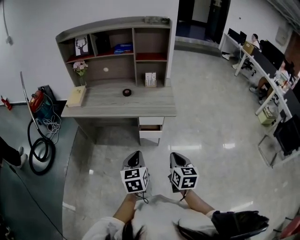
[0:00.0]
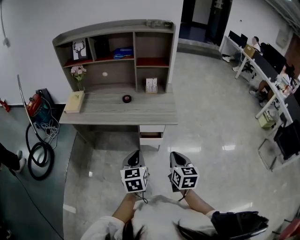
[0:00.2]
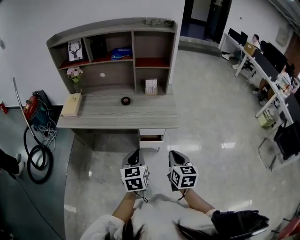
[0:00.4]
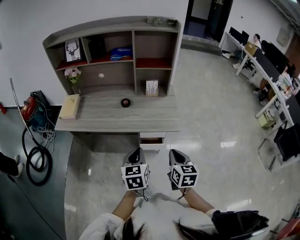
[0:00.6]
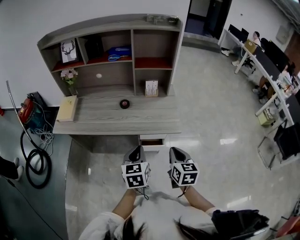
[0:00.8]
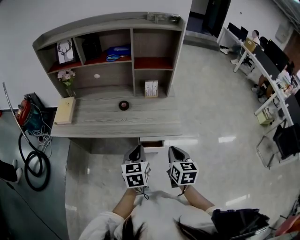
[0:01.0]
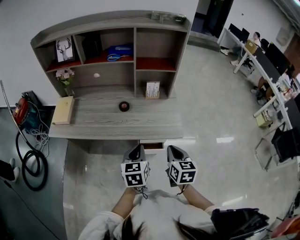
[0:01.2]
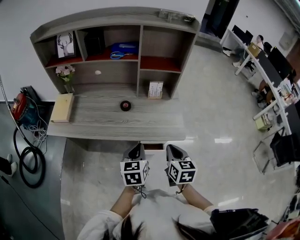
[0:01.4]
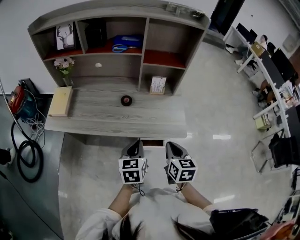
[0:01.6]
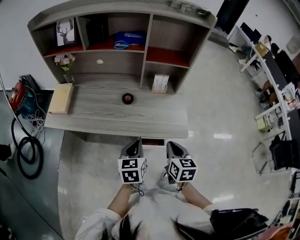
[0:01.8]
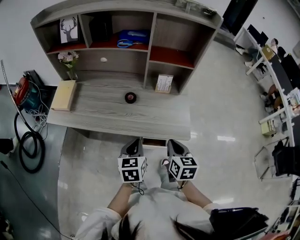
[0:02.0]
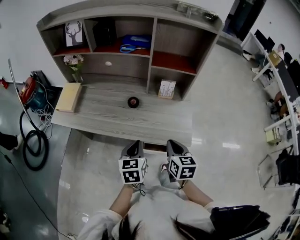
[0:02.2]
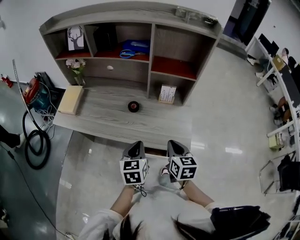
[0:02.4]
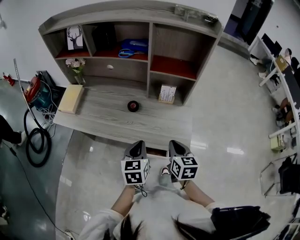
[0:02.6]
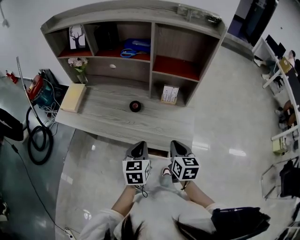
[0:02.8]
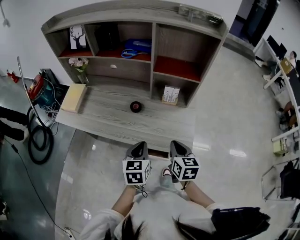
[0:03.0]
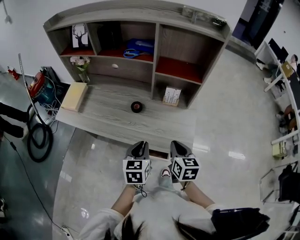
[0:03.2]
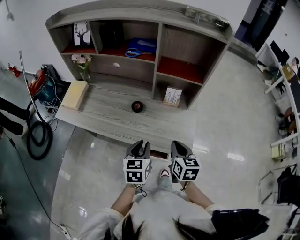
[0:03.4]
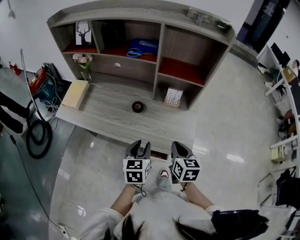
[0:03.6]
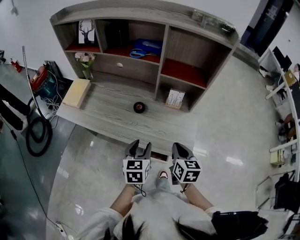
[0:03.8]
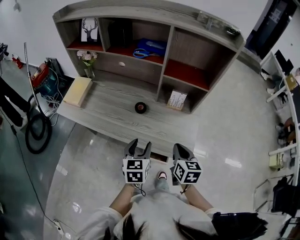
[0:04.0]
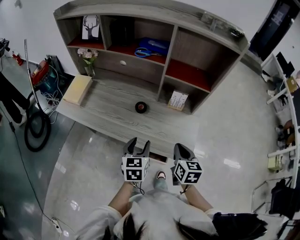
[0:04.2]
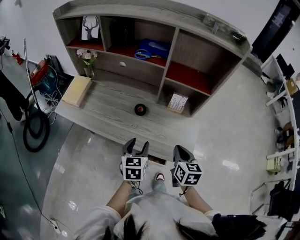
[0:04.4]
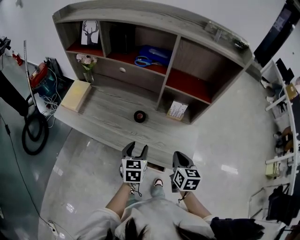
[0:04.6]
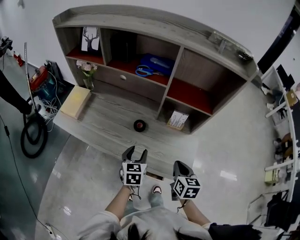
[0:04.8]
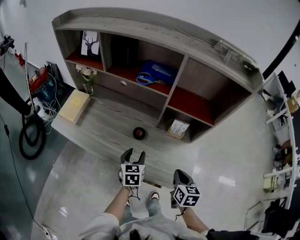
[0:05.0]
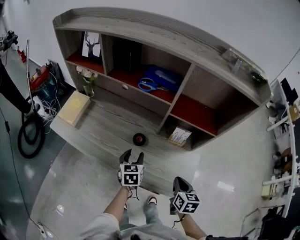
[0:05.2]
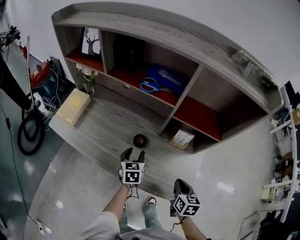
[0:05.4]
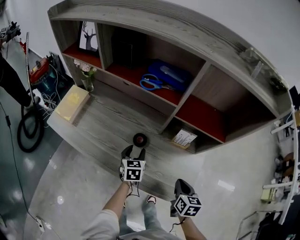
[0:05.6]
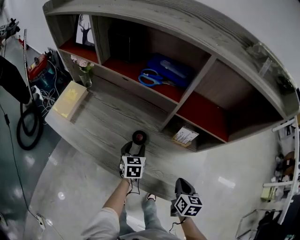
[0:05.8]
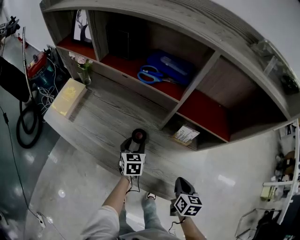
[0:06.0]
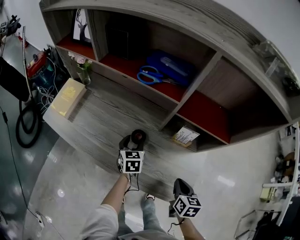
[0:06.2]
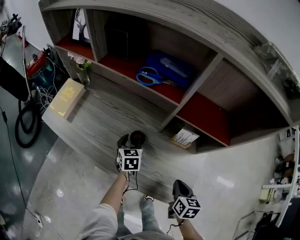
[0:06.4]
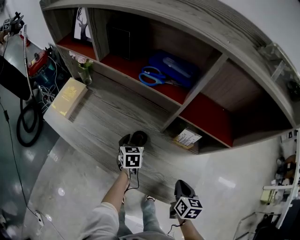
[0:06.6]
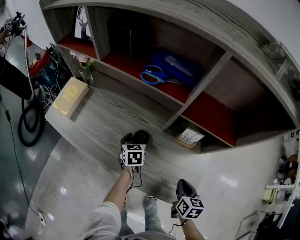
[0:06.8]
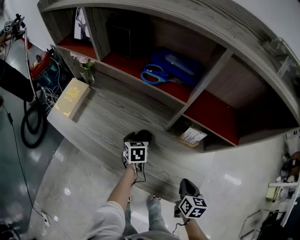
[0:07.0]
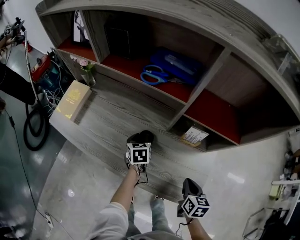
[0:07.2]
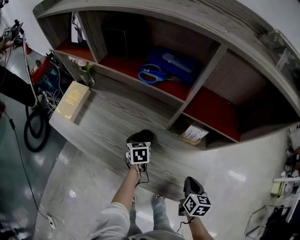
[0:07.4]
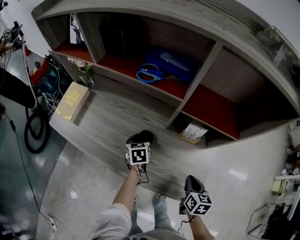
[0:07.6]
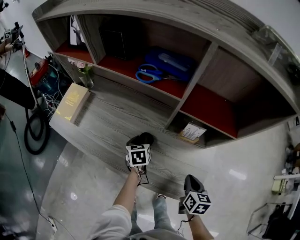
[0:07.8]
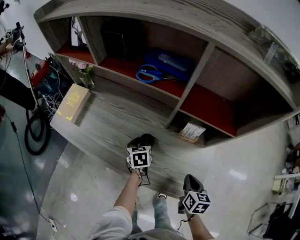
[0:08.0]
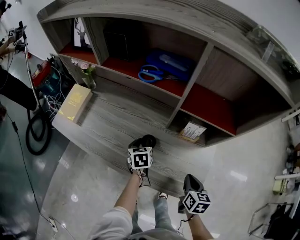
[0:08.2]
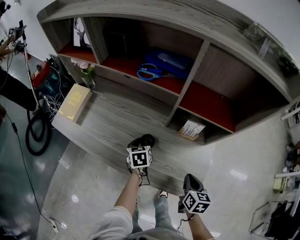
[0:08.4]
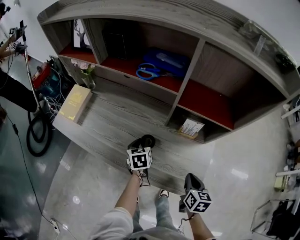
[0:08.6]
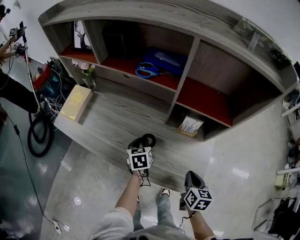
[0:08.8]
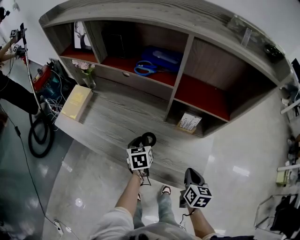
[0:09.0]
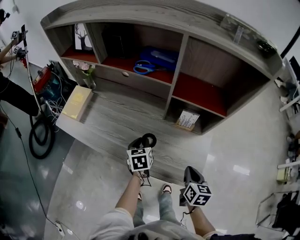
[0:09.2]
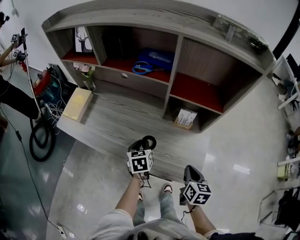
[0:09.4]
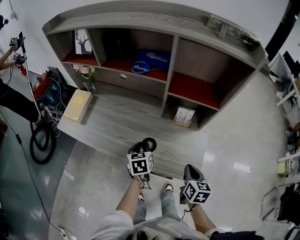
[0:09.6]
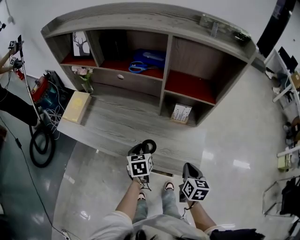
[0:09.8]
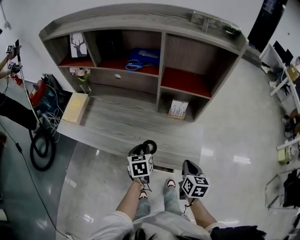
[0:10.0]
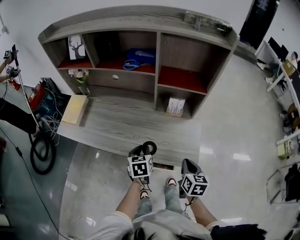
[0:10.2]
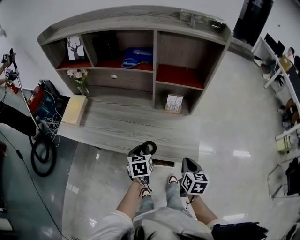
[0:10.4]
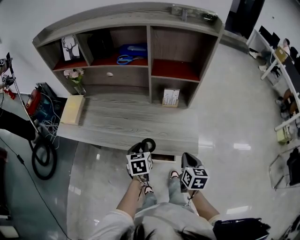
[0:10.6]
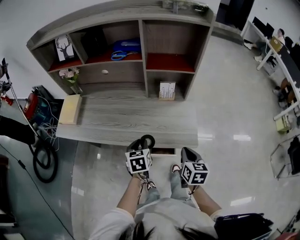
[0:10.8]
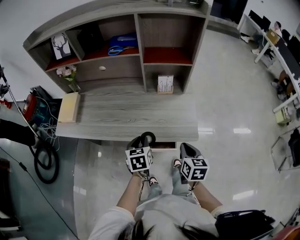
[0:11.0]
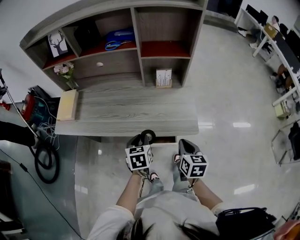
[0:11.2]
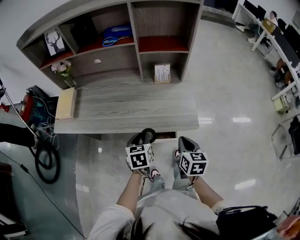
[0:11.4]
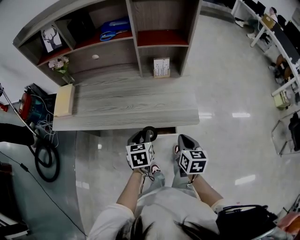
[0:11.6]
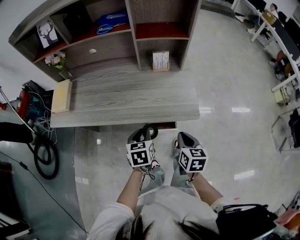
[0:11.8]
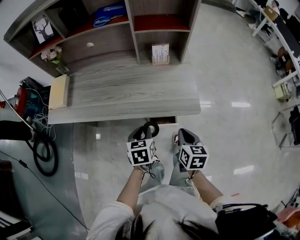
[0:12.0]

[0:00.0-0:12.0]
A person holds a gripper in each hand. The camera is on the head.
0:00.0 to 0:01.6: Both grippers move forward, about 30 cm.
0:01.6 to 0:03.0: The left gripper is displaced forward by roughly 5 cm; the right gripper shifts approximately 10 cm forward.
0:03.0 to 0:04.4: The left gripper moves roughly 5 cm, and opens.
0:04.4 to 0:06.0: The right gripper moves downward and forward, some 10 cm, while the left gripper is displaced forward and downward by roughly 25 cm.
0:06.0 to 0:07.6: There are only small adjustments of the grippers.
0:07.6 to 0:09.0: The left gripper heads backward and upward, covering roughly 10 cm.
0:09.0 to 0:10.4: Both grippers move backward, about 15 cm.
0:10.4 to 0:12.0: Both grippers travel together backward, some 10 cm.

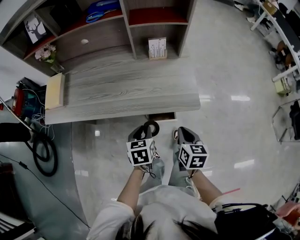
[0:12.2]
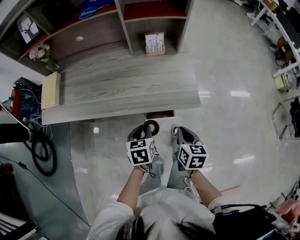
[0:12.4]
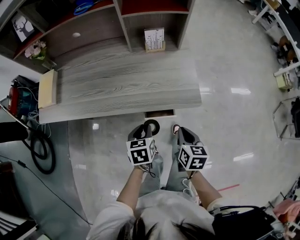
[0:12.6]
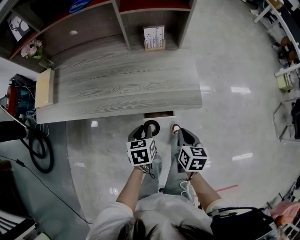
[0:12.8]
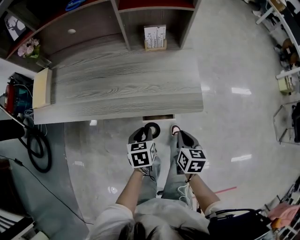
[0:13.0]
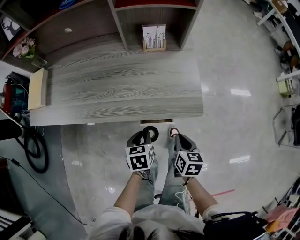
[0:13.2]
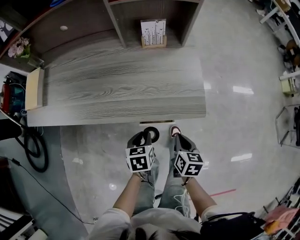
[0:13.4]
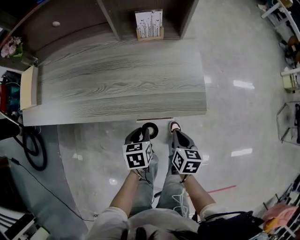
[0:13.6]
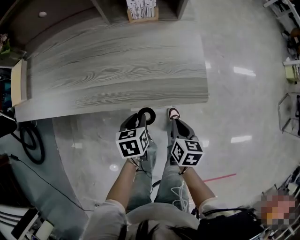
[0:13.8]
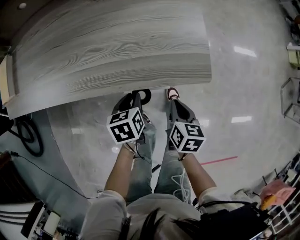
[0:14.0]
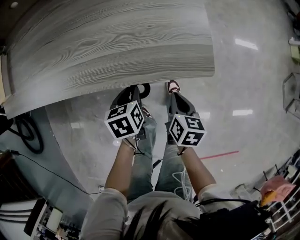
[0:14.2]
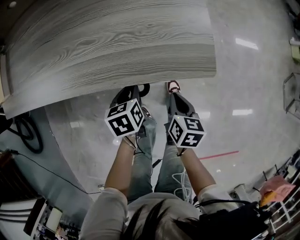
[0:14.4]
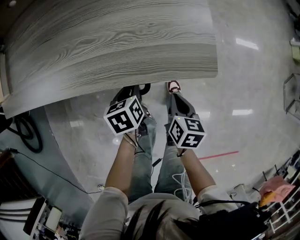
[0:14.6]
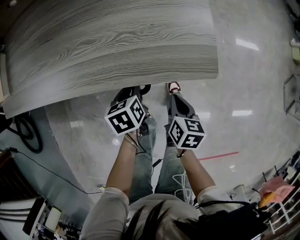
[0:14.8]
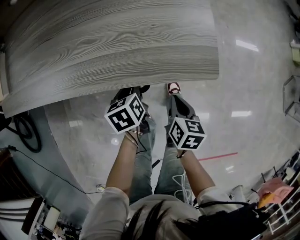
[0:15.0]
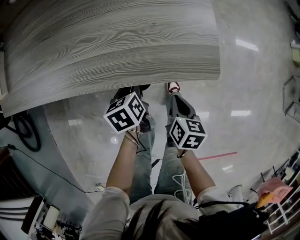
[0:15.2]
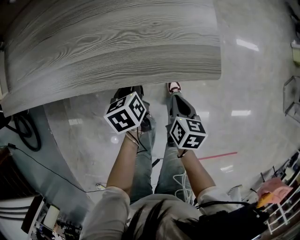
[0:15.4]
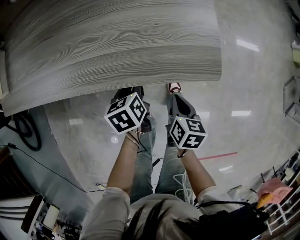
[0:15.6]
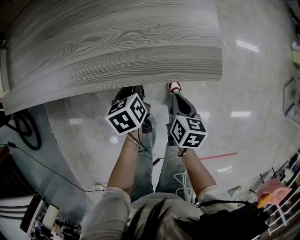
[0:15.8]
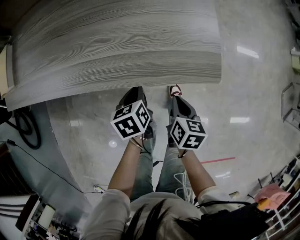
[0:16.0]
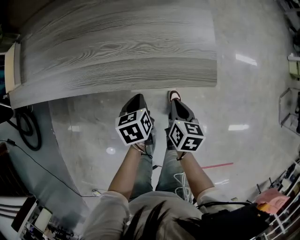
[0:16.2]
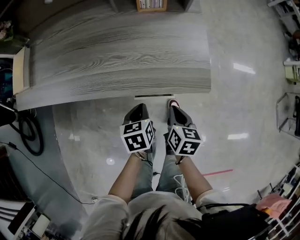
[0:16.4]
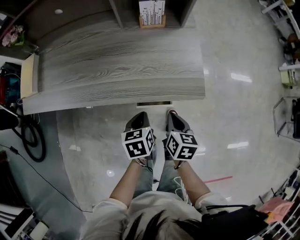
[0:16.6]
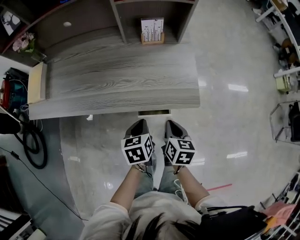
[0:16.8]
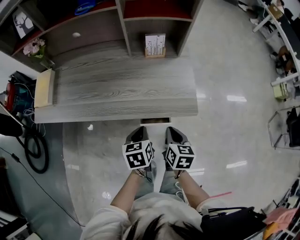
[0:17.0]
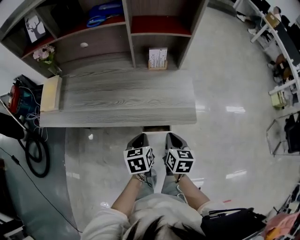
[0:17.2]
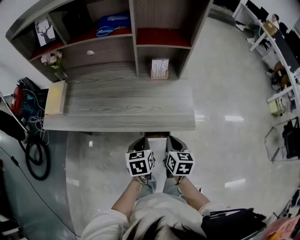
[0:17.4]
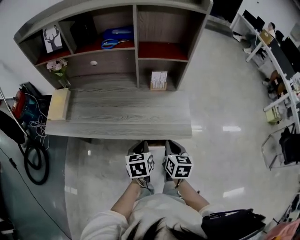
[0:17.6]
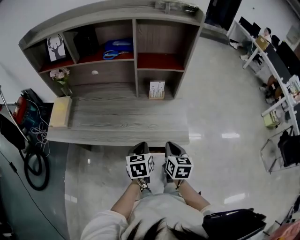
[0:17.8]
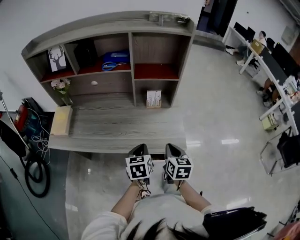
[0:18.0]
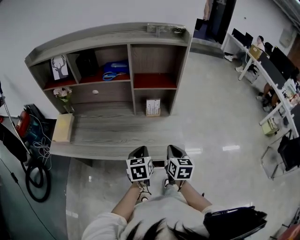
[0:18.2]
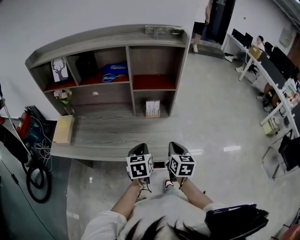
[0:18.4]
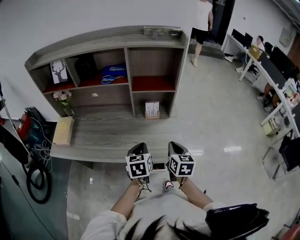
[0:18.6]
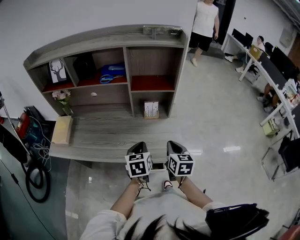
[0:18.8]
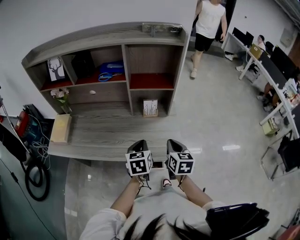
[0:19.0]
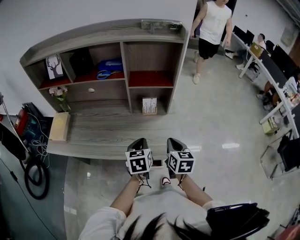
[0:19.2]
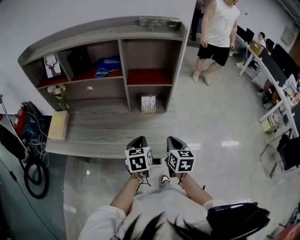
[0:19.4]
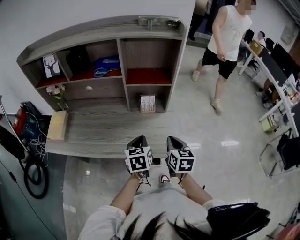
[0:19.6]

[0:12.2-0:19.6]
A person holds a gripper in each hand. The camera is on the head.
0:12.2 to 0:13.6: Both grippers travel together downward, roughly 15 cm.
0:13.6 to 0:15.2: The left gripper goes approximately 10 cm downward and forward. Meanwhile the right gripper shifts some 10 cm downward.
0:15.2 to 0:16.6: Both grippers travel together upward, approximately 15 cm. The left gripper closes.
0:16.6 to 0:18.2: The grippers both shift upward by about 25 cm. The right gripper changes its angle by approximately 20 degrees.
0:18.2 to 0:19.6: The right gripper changes place by some 5 cm. The left gripper changes place by roughly 5 cm.

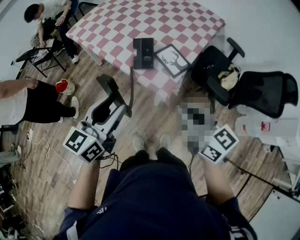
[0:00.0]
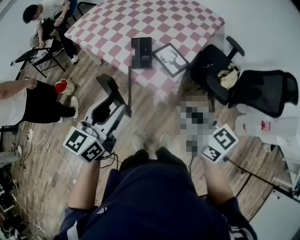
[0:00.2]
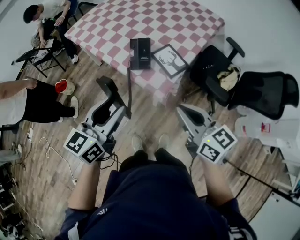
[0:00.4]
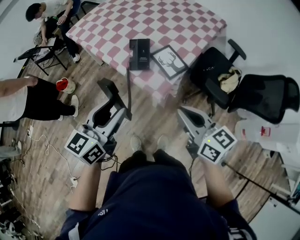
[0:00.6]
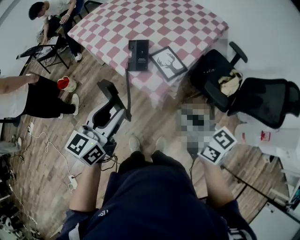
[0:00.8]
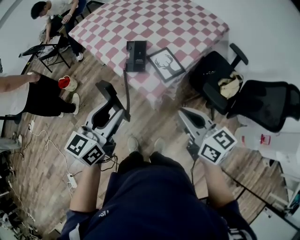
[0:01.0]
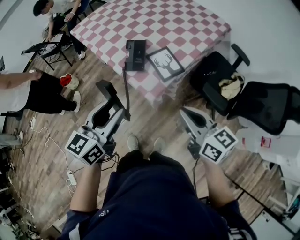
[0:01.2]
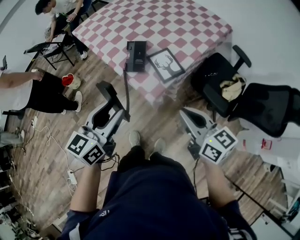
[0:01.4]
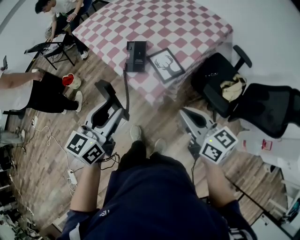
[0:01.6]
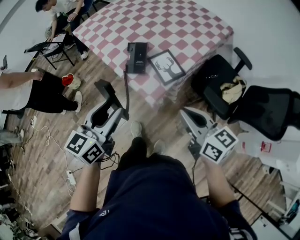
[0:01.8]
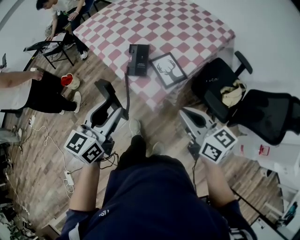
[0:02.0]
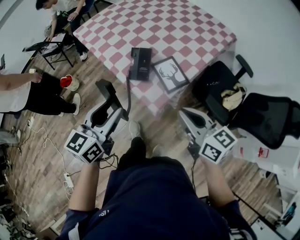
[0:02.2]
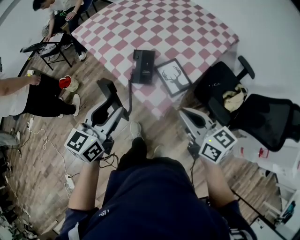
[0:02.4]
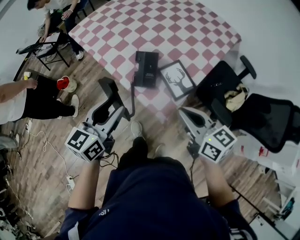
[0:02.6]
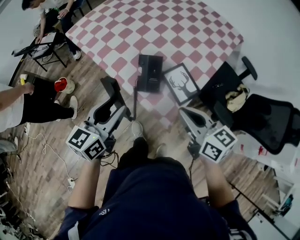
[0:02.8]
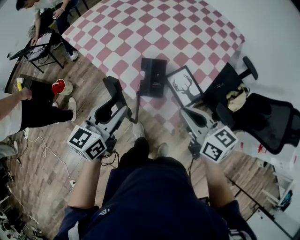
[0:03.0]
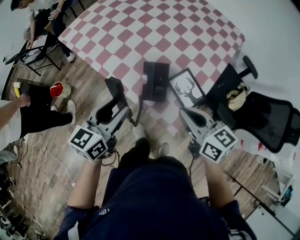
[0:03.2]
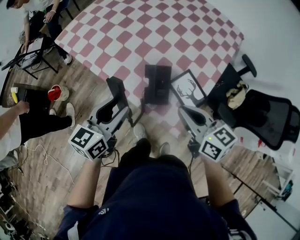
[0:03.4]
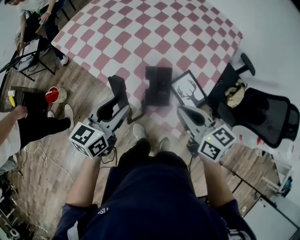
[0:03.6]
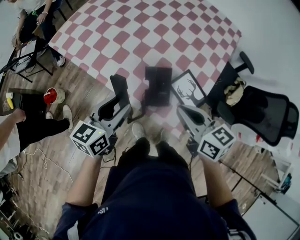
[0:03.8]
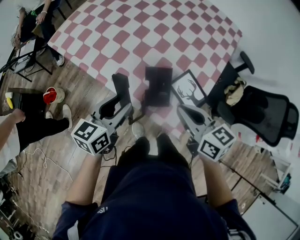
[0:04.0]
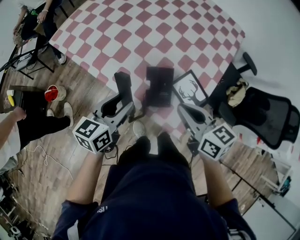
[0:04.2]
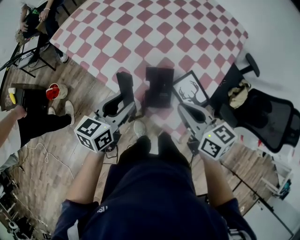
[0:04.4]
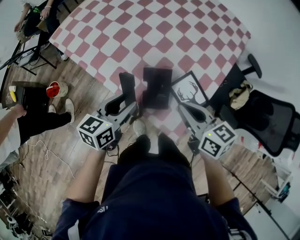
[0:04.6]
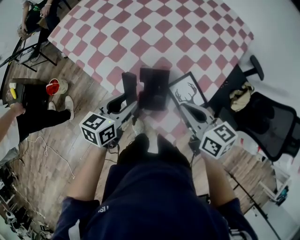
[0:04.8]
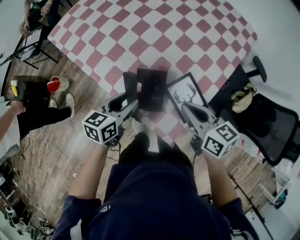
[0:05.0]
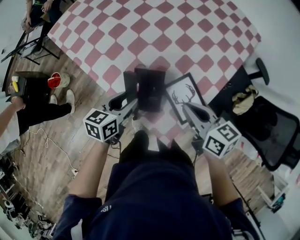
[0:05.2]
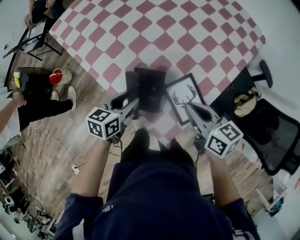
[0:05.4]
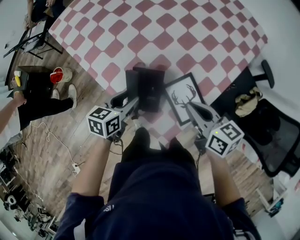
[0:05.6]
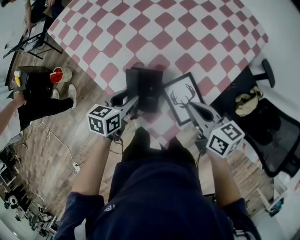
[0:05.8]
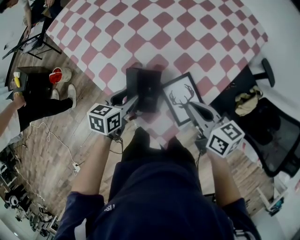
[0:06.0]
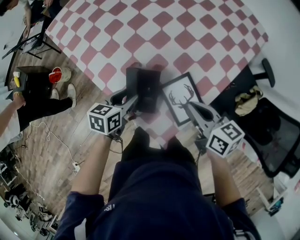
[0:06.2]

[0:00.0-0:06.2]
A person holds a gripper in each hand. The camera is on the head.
0:00.0 to 0:01.6: Both grippers move to the right, roughly 10 cm.
0:01.6 to 0:03.2: Both grippers move forward and to the left, approximately 25 cm.
0:03.2 to 0:04.6: The right gripper moves forward, about 5 cm. Meanwhile the left gripper moves downward and forward, some 10 cm.
0:04.6 to 0:06.2: The left gripper heads downward and to the right, covering about 15 cm, and changes its angle by about 20 degrees. The right gripper travels to the right and downward by about 10 cm.
